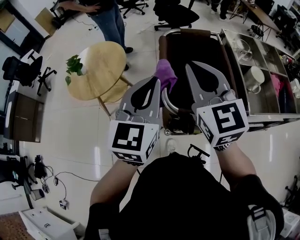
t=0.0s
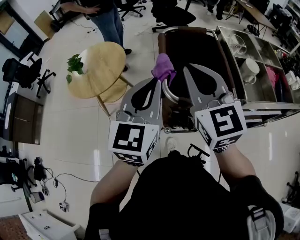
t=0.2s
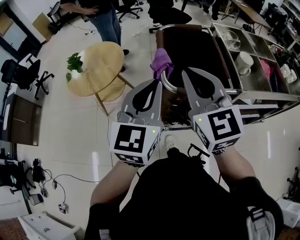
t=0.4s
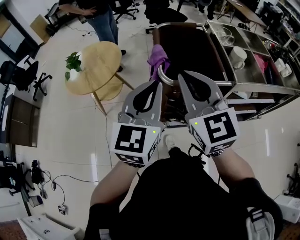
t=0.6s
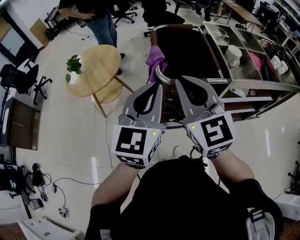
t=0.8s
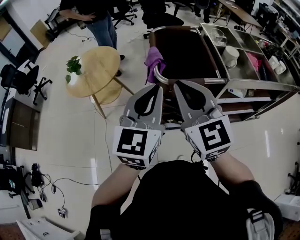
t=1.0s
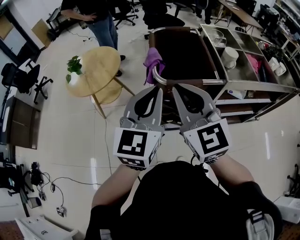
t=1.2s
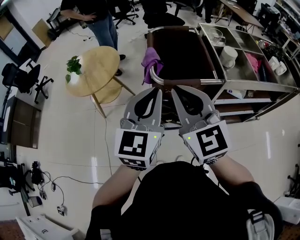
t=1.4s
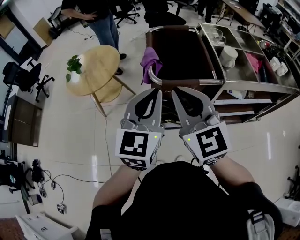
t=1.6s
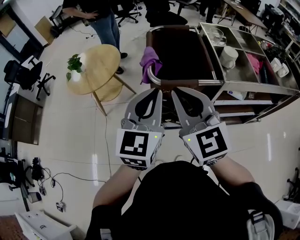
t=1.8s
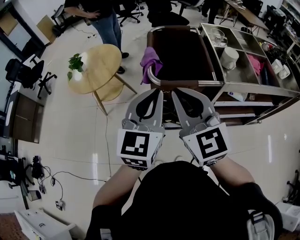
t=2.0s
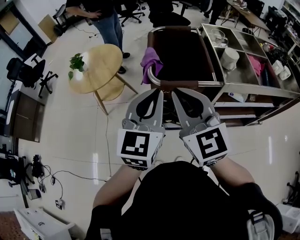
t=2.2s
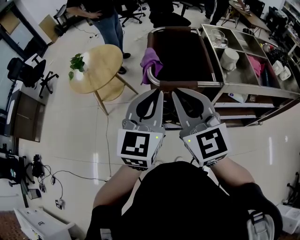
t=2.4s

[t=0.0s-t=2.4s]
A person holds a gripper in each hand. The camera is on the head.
t=0.0s to t=1.2s: The two grippers go some 25 cm backward.
t=1.2s to t=2.4s: The two grippers go about 5 cm to the right.

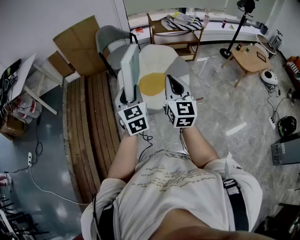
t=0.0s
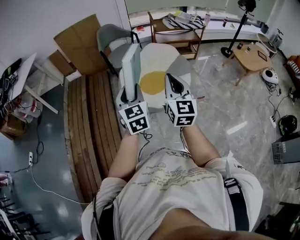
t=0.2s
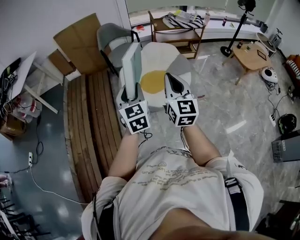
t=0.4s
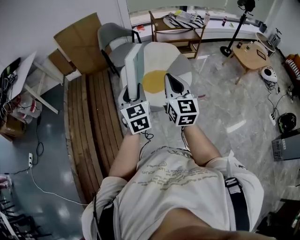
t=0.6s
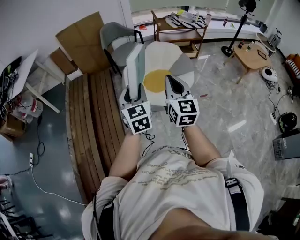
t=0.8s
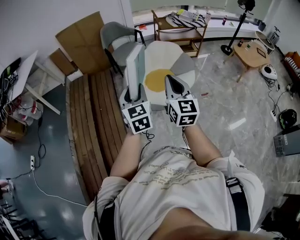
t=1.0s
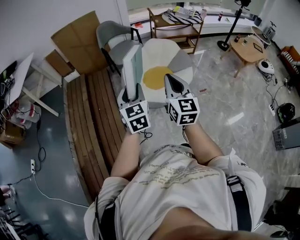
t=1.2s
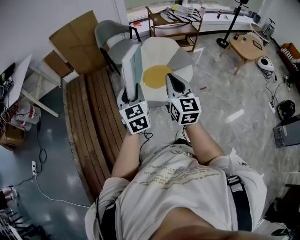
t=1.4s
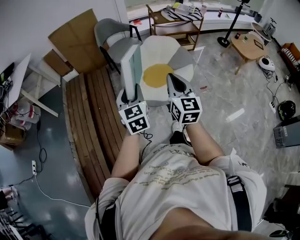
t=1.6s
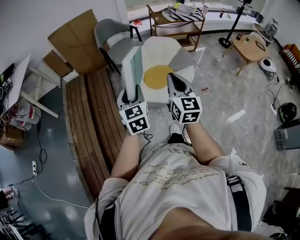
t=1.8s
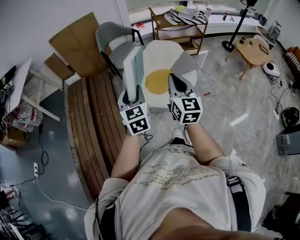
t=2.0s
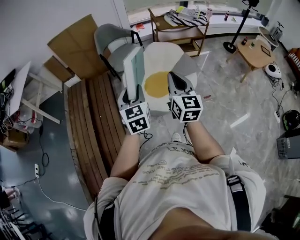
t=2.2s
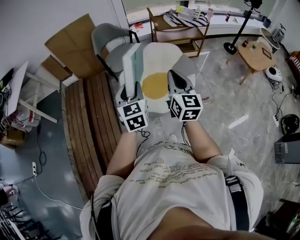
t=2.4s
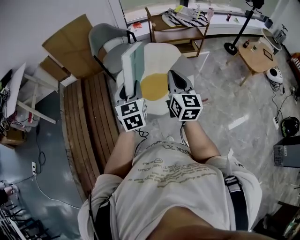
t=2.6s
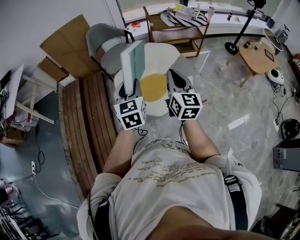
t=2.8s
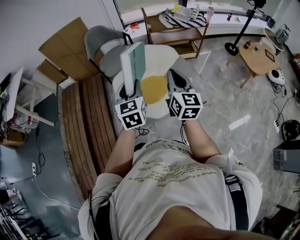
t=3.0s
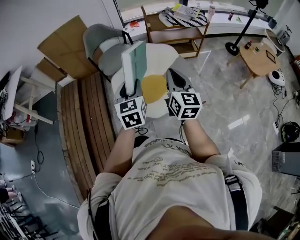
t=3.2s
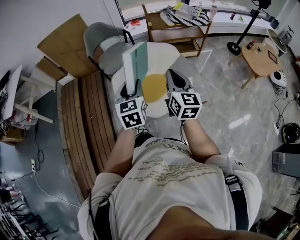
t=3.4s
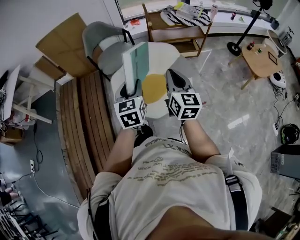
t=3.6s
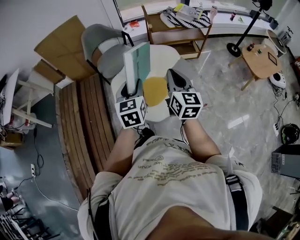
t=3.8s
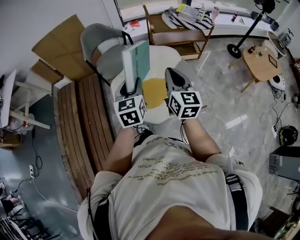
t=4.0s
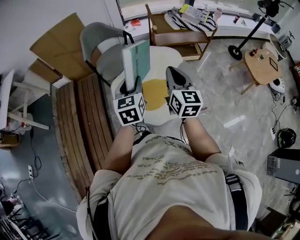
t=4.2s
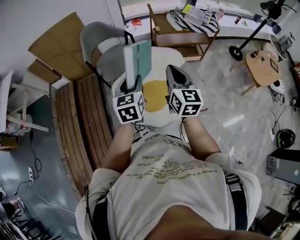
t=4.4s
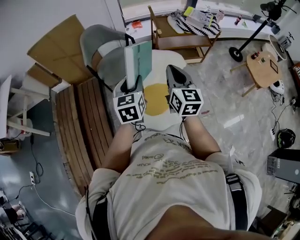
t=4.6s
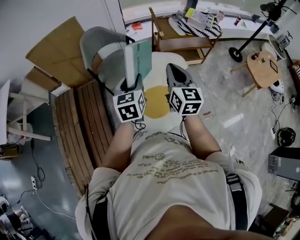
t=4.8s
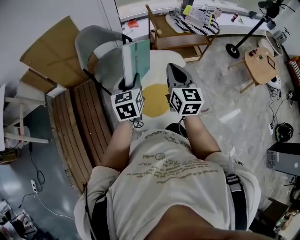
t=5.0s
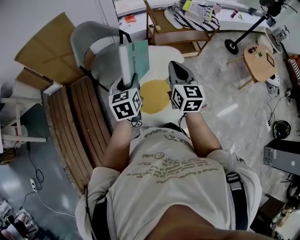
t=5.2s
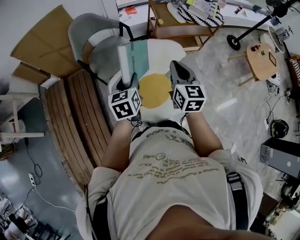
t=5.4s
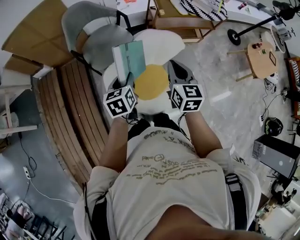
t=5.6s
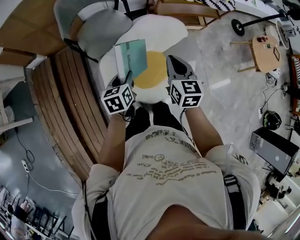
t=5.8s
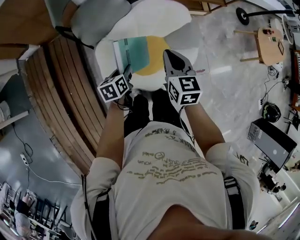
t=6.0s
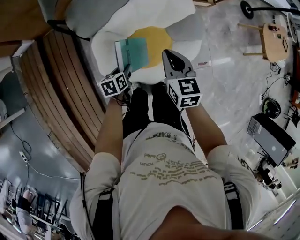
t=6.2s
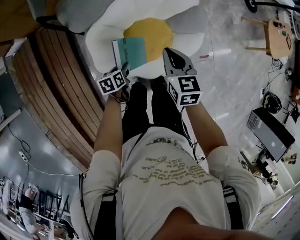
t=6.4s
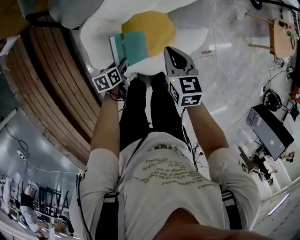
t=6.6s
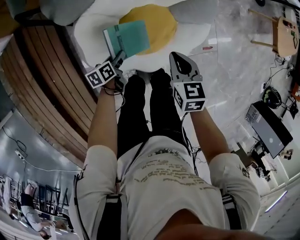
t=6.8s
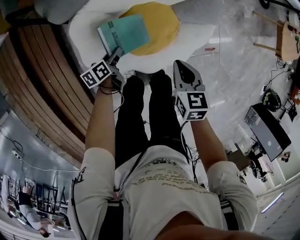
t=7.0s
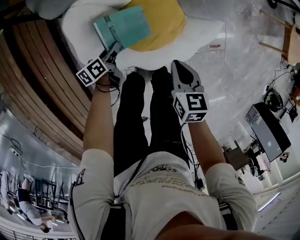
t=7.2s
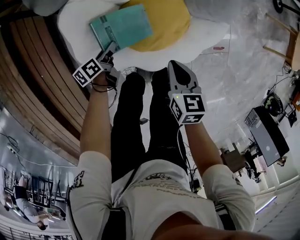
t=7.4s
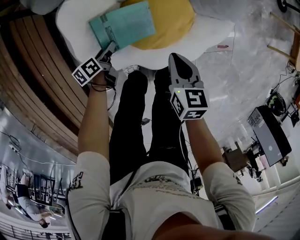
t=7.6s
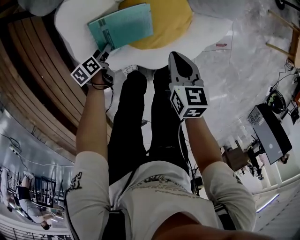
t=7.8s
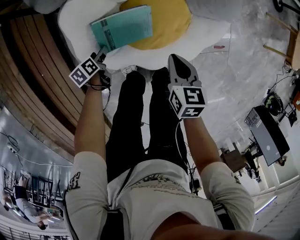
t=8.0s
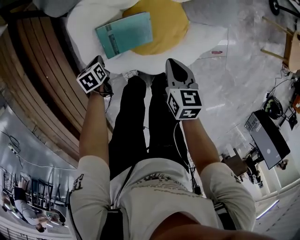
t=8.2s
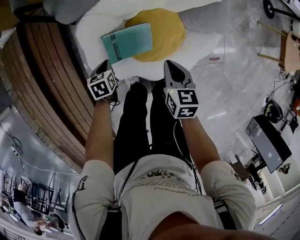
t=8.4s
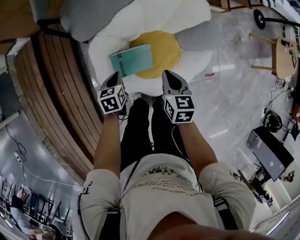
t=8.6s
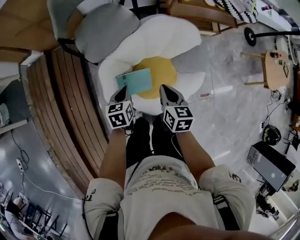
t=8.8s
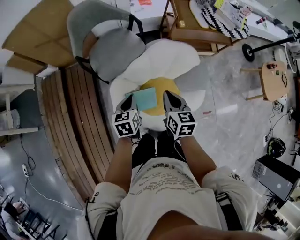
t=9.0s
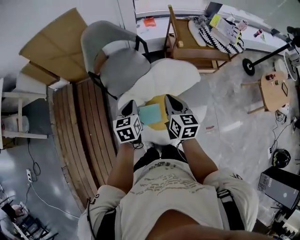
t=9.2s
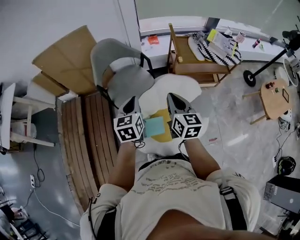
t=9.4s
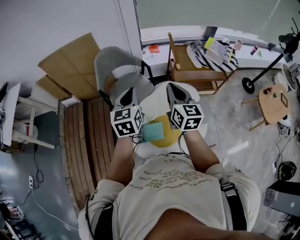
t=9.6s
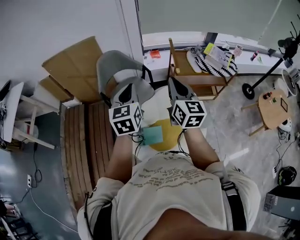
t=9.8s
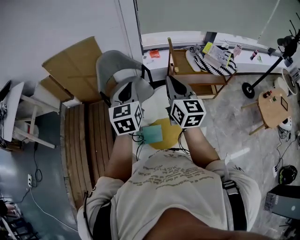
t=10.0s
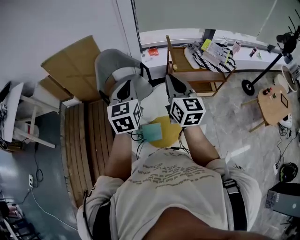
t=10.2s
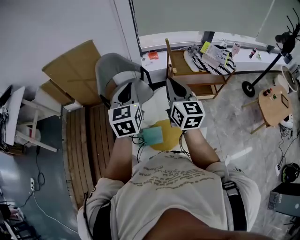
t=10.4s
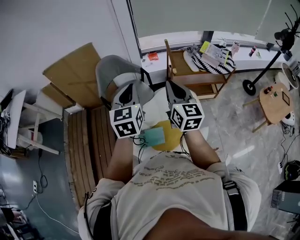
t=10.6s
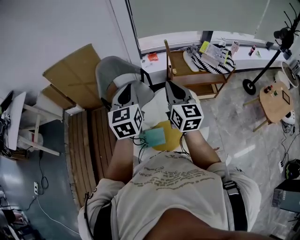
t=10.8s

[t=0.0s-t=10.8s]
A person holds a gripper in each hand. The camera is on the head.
t=0.0s to t=1.6s: The grippers both shift to the left by approximately 10 cm.
t=1.6s to t=3.0s: The grippers both shift forward and to the right by roughly 30 cm.
t=3.0s to t=4.6s: The two grippers go about 20 cm forward.
t=4.6s to t=6.2s: The right gripper goes roughly 25 cm downward, and changes its angle by approximately 30 degrees. The left gripper heads downward, covering about 40 cm, and changes its angle by some 50 degrees.
t=6.2s to t=7.8s: The grippers both shift downward by about 30 cm. The right gripper turns by roughly 20 degrees. The left gripper changes its angle by approximately 20 degrees, and opens its fingers.
t=7.8s to t=9.2s: Both grippers travel together upward, approximately 50 cm. The right gripper rotates roughly 30 degrees. Meanwhile the left gripper changes its angle by approximately 50 degrees, and closes its fingers.
t=9.2s to t=10.8s: The grippers both shift upward by about 25 cm. The left gripper turns by approximately 30 degrees, while the right gripper turns by approximately 30 degrees.

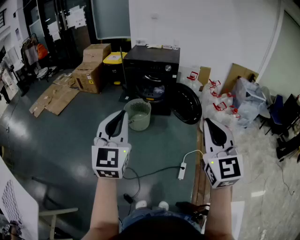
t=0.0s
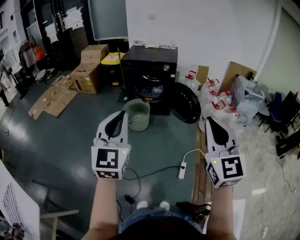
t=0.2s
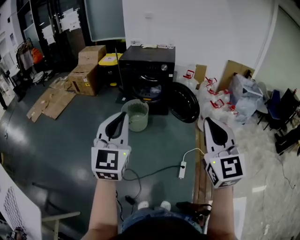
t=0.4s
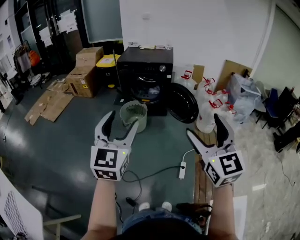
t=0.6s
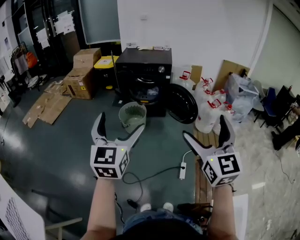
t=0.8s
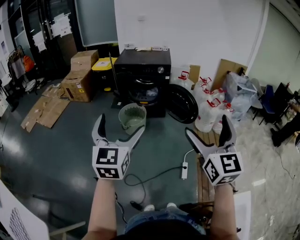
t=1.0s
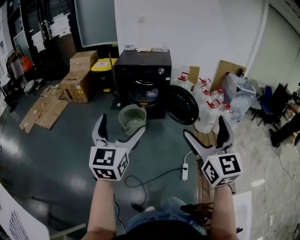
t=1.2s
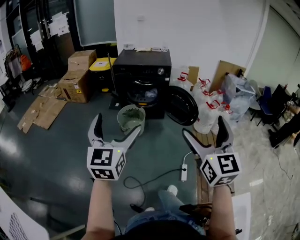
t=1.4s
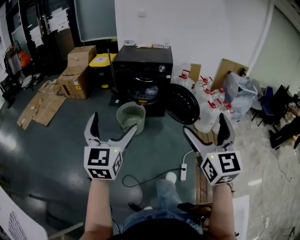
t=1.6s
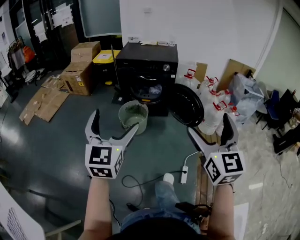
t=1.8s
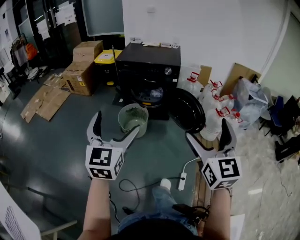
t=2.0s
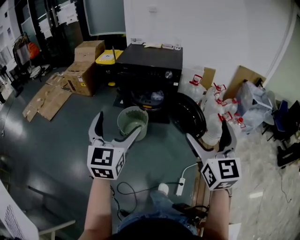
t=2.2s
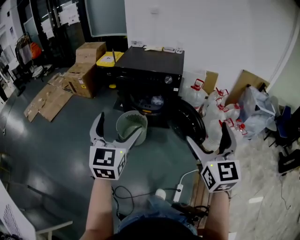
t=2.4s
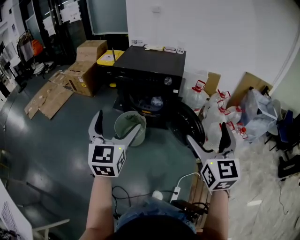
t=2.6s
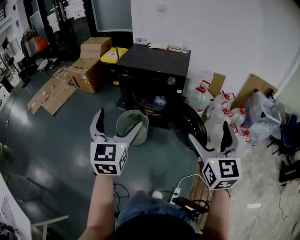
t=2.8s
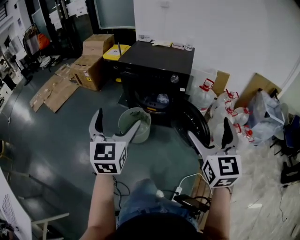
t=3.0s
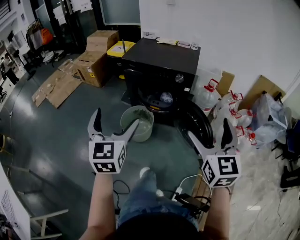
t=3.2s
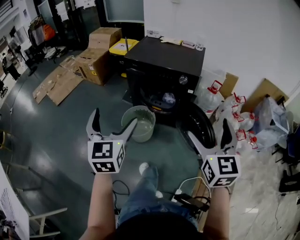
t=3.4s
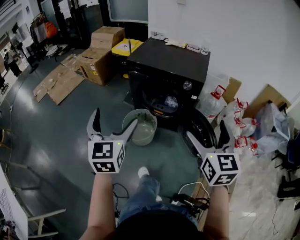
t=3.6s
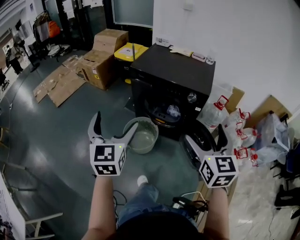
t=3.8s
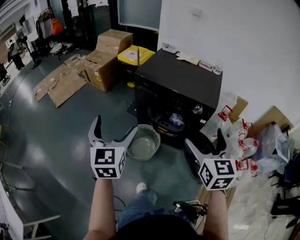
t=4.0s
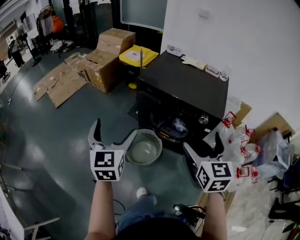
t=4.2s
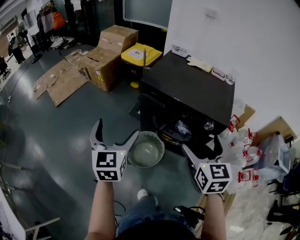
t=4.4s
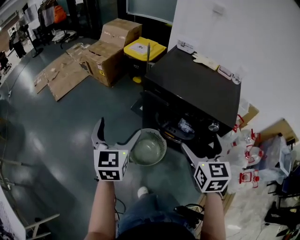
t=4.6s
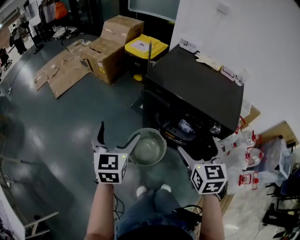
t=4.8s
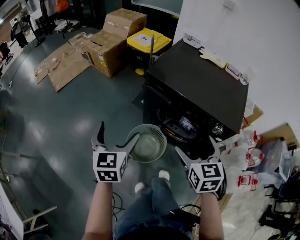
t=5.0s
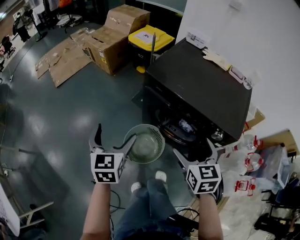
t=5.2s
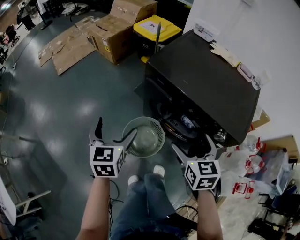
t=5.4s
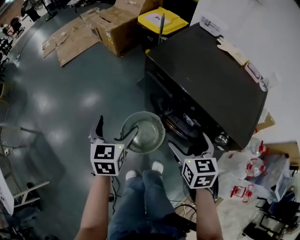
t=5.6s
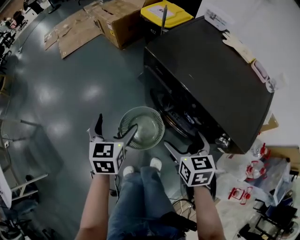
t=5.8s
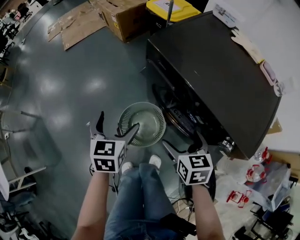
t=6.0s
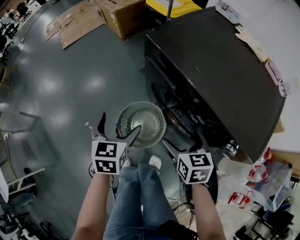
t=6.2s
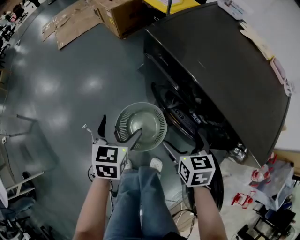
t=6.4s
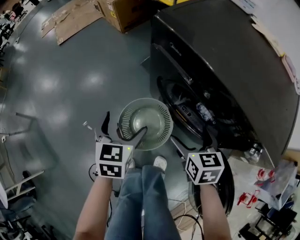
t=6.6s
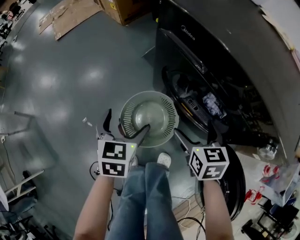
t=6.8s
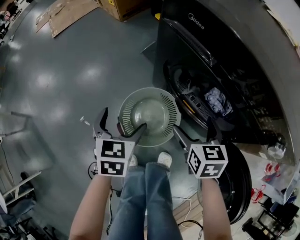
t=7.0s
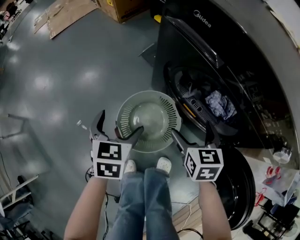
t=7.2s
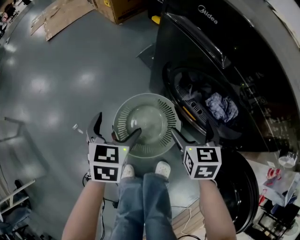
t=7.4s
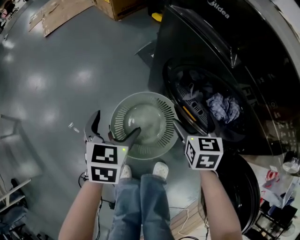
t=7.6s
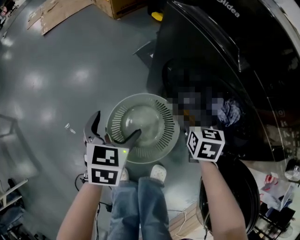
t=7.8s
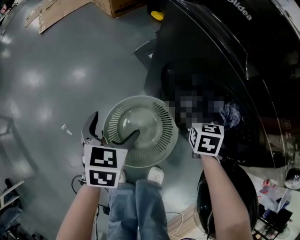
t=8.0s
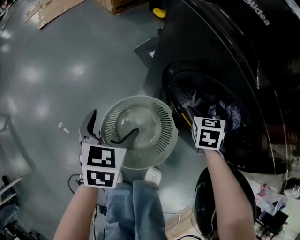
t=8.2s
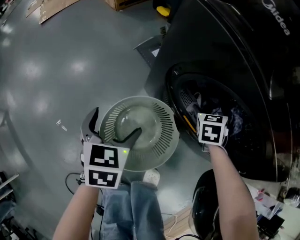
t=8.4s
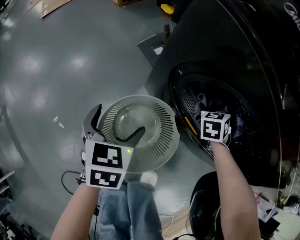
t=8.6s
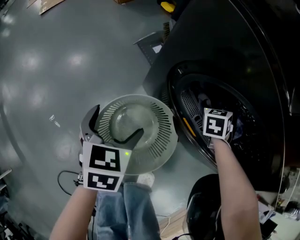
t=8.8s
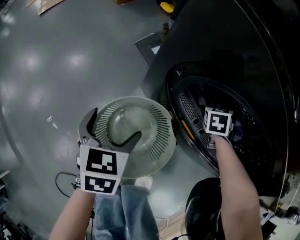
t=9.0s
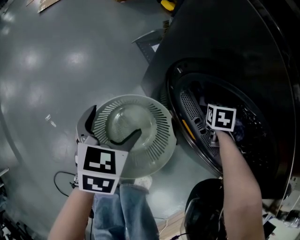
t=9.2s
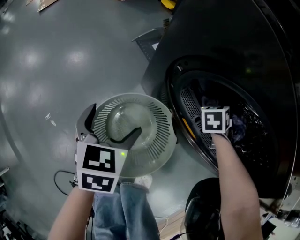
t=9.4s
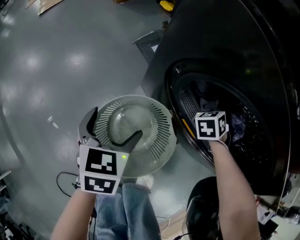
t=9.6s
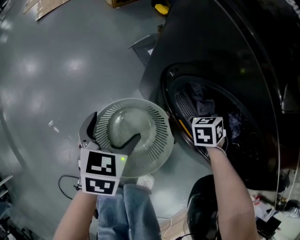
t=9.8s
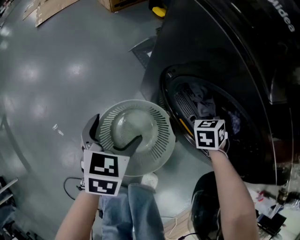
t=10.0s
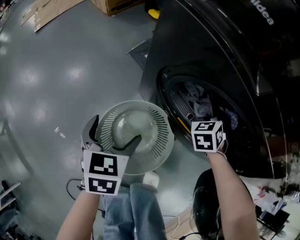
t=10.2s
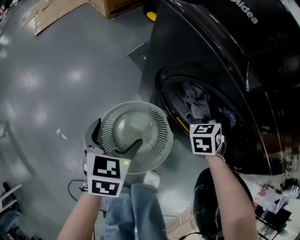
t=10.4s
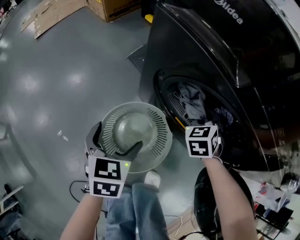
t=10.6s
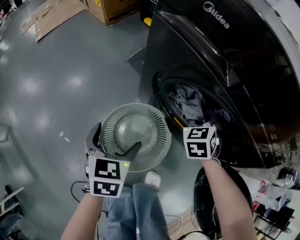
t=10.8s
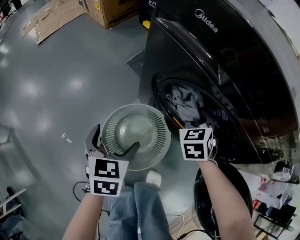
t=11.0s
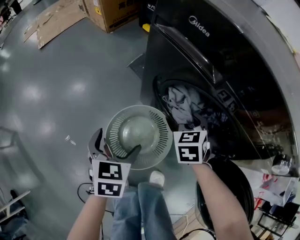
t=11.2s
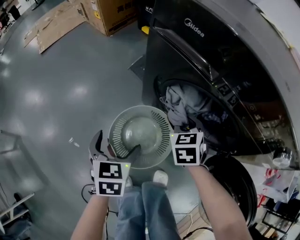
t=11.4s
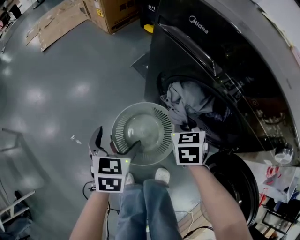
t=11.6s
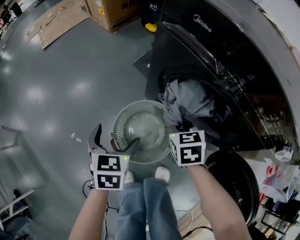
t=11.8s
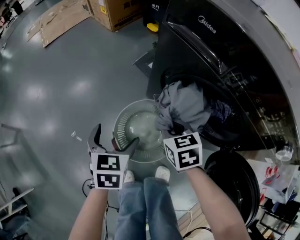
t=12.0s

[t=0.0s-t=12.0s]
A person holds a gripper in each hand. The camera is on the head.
t=0.0s to t=1.6s: Both grippers move forward and to the left, approximately 10 cm. The left gripper opens up; the right gripper opens up.
t=1.6s to t=3.0s: Both grippers move forward and to the right, approximately 35 cm.
t=3.0s to t=4.4s: The right gripper travels forward by about 35 cm; the left gripper goes about 35 cm forward and to the left.
t=4.4s to t=6.0s: The right gripper shifts about 30 cm downward and forward, and changes its angle by about 40 degrees. The left gripper goes approximately 25 cm downward, and rotates approximately 30 degrees.
t=6.0s to t=7.6s: The grippers both shift downward by approximately 25 cm.
t=7.6s to t=9.0s: The left gripper shifts approximately 10 cm downward and forward. The right gripper is displaced forward, downward and to the right by roughly 25 cm, and turns by about 30 degrees.
t=9.0s to t=10.4s: The right gripper goes roughly 10 cm upward and backward, and closes its fingers. The left gripper shifts approximately 5 cm upward.
t=10.4s to t=12.0s: The right gripper shifts by about 25 cm, and rotates roughly 40 degrees. The left gripper ends up about 10 cm from where it was.
